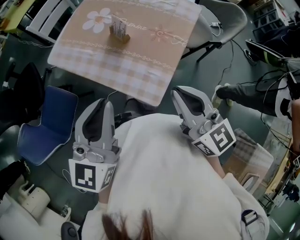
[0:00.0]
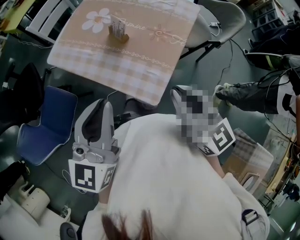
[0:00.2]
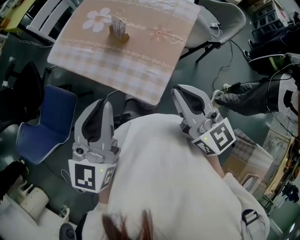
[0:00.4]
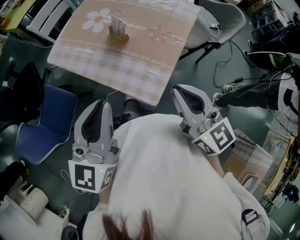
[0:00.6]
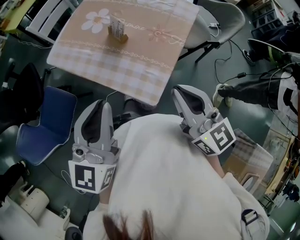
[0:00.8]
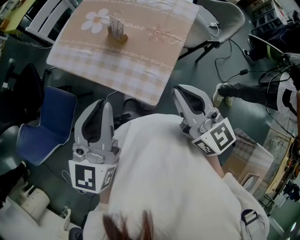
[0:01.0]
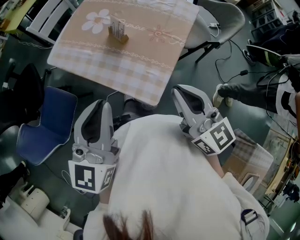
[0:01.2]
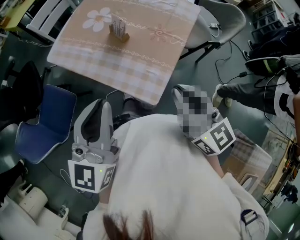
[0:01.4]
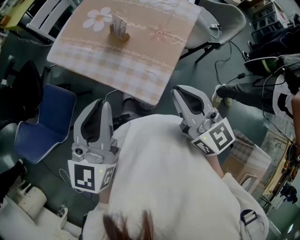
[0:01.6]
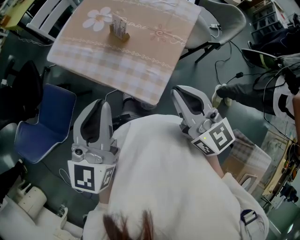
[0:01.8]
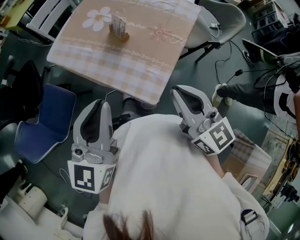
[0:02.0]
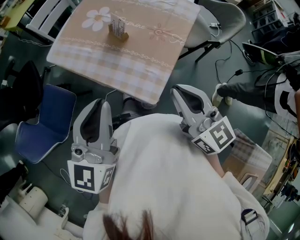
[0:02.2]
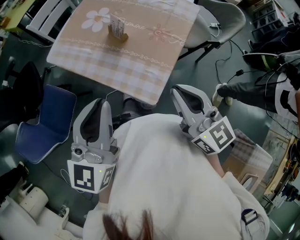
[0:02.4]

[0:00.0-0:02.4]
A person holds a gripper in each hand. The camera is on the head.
0.0 to 2.4 s: Both grippers stay put.

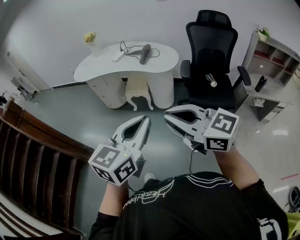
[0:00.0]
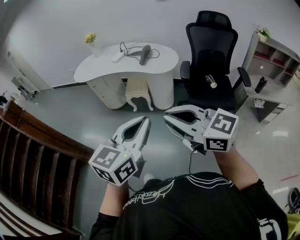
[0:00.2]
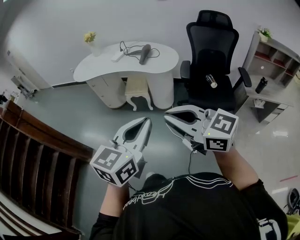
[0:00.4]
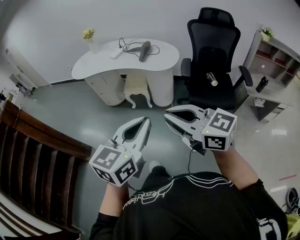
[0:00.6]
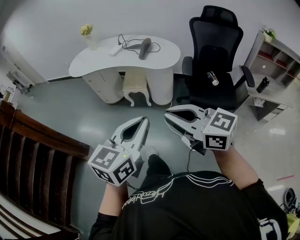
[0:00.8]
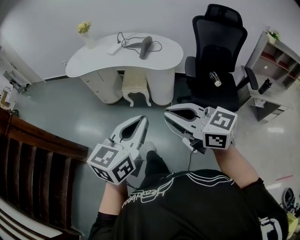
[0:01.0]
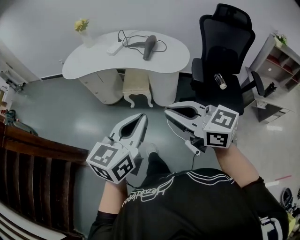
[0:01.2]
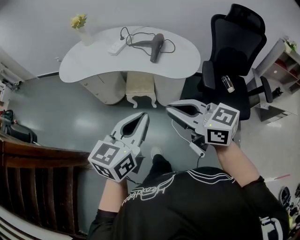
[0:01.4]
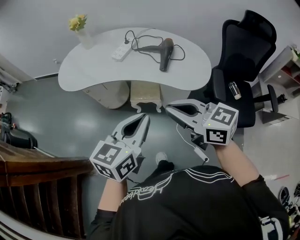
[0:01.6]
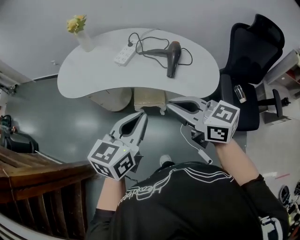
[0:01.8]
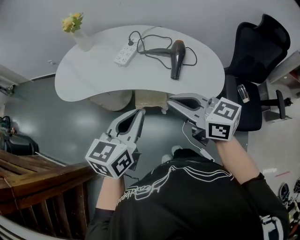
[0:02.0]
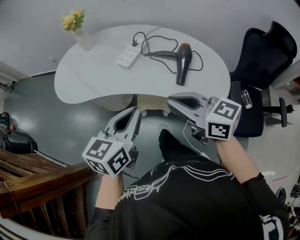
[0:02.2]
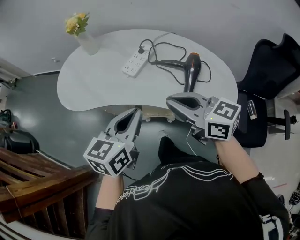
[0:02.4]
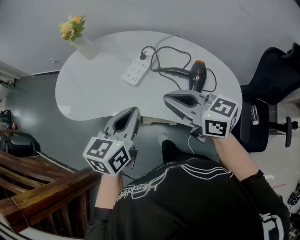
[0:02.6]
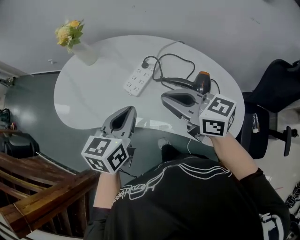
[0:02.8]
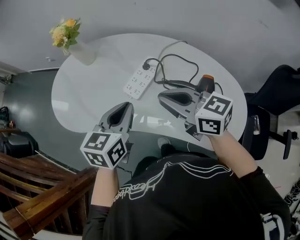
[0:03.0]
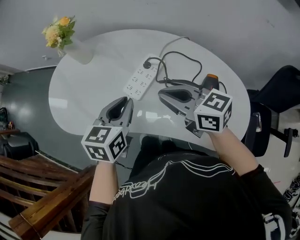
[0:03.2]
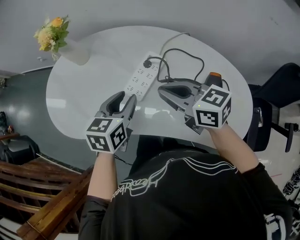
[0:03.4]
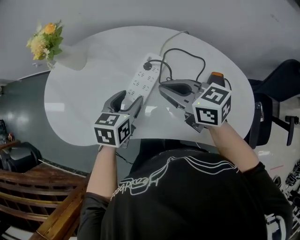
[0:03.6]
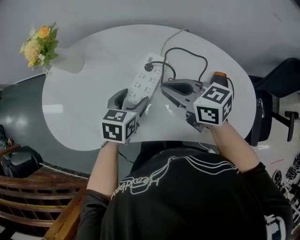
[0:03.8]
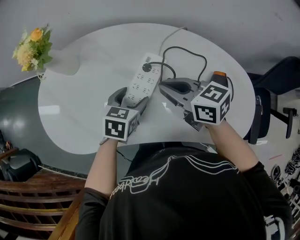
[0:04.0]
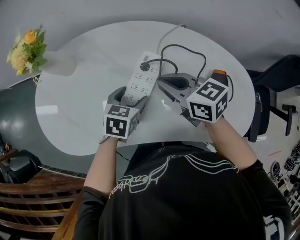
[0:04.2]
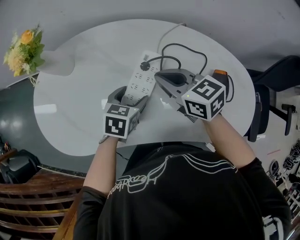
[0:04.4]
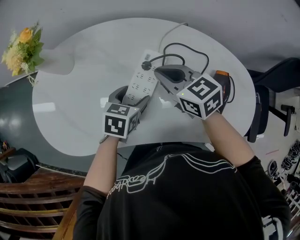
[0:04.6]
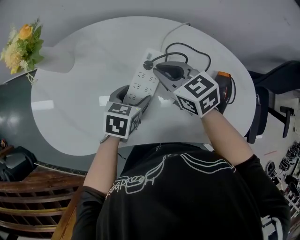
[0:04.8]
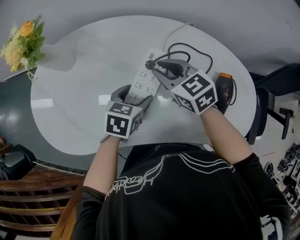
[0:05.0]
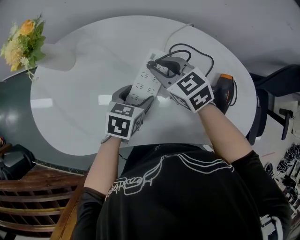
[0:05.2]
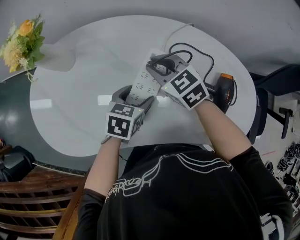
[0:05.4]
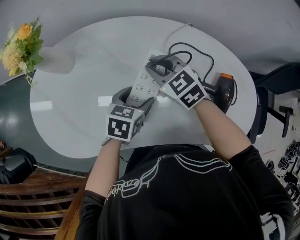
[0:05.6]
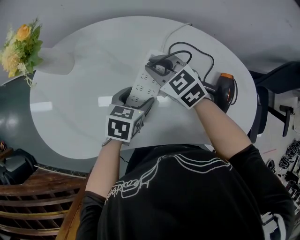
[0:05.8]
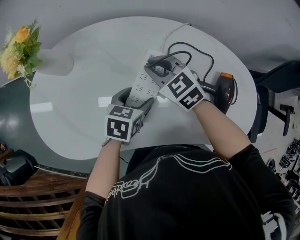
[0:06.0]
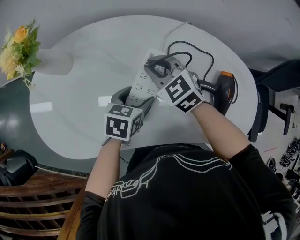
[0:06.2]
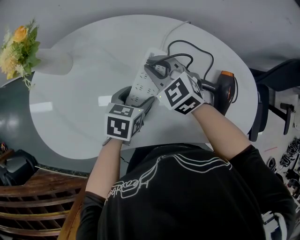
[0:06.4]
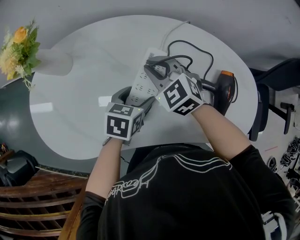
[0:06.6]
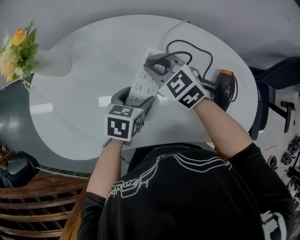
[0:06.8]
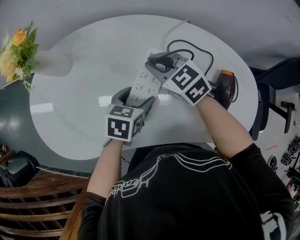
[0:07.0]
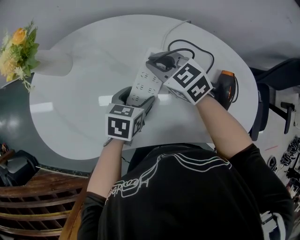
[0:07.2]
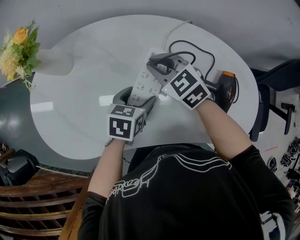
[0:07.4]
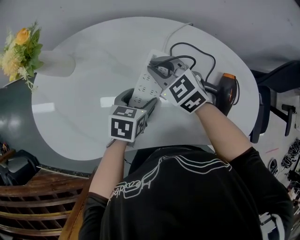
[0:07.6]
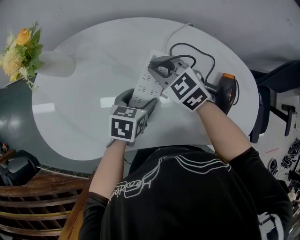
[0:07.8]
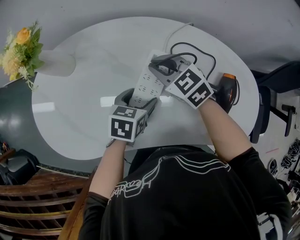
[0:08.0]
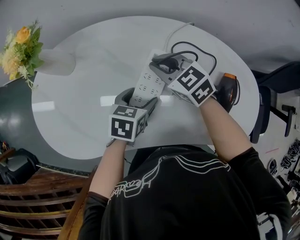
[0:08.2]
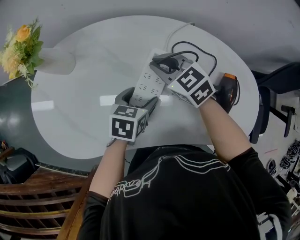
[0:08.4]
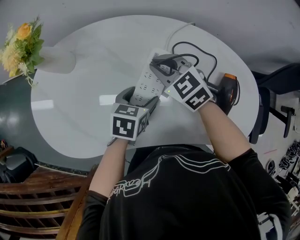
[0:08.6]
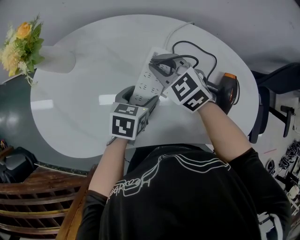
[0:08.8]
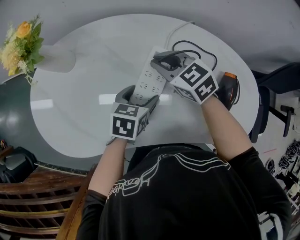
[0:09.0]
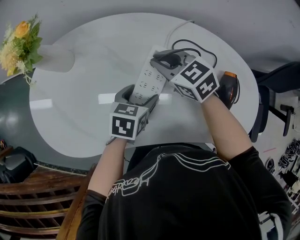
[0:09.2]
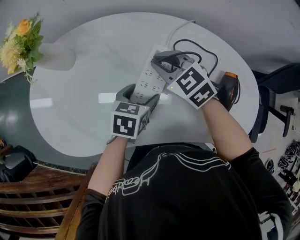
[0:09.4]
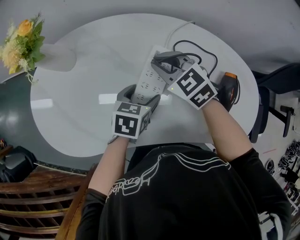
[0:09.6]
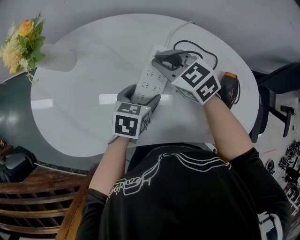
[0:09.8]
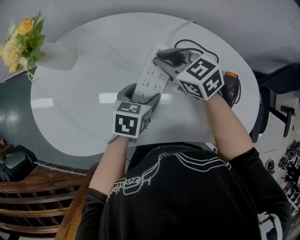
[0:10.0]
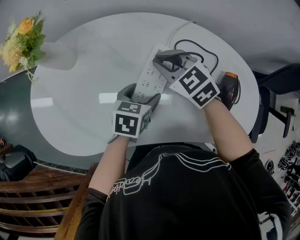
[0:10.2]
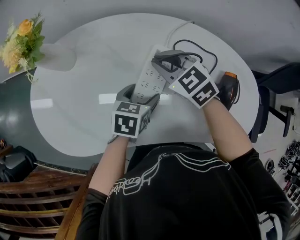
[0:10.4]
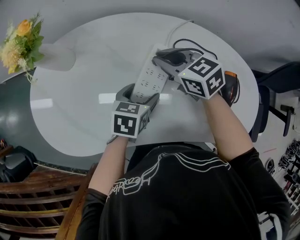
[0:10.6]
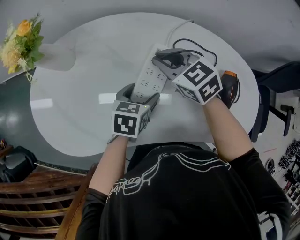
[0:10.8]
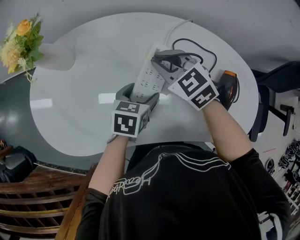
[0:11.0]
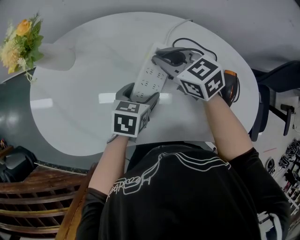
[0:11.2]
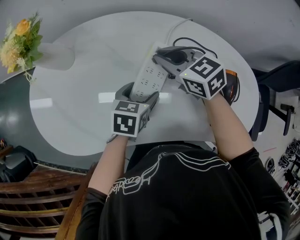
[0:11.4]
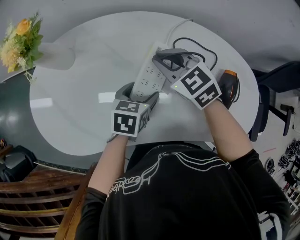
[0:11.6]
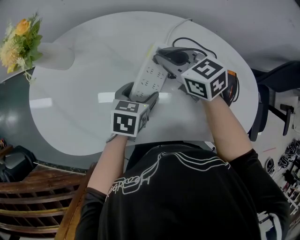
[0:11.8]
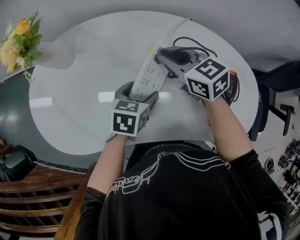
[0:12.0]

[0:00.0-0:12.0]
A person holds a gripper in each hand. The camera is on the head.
0.0 to 1.6 s: The pair of grippers is taken forward, approximately 40 cm.
1.6 to 3.0 s: Both grippers are carried forward, approximately 40 cm.
3.0 to 4.4 s: The right gripper heads forward and downward, covering some 20 cm, and swivels roughly 20 degrees, while the left gripper is displaced downward and forward by roughly 20 cm, rotates approximately 30 degrees, and opens up.
4.4 to 6.0 s: The right gripper heads forward and downward, covering about 10 cm, and swivels roughly 30 degrees.
6.0 to 10.4 s: The grippers stay close to where they were, moving slightly.

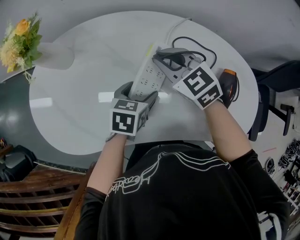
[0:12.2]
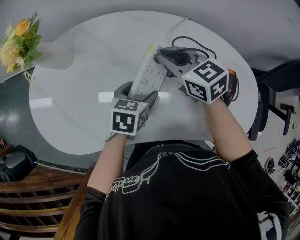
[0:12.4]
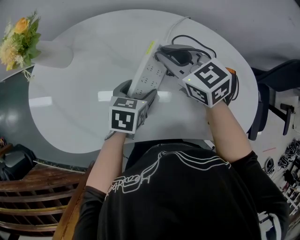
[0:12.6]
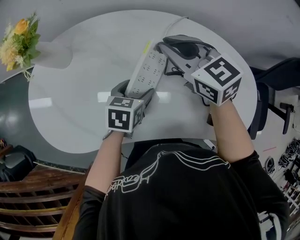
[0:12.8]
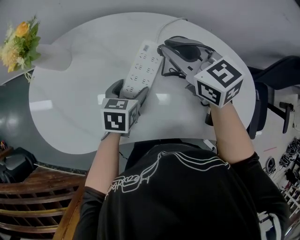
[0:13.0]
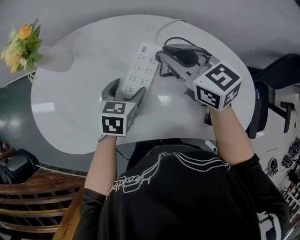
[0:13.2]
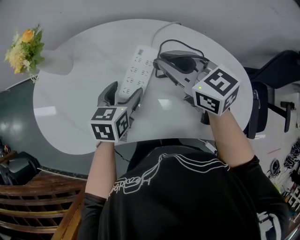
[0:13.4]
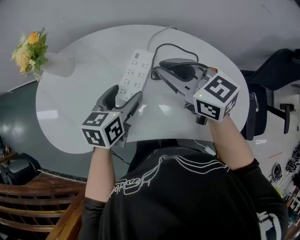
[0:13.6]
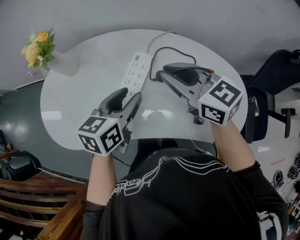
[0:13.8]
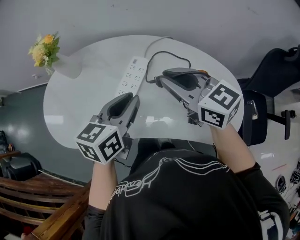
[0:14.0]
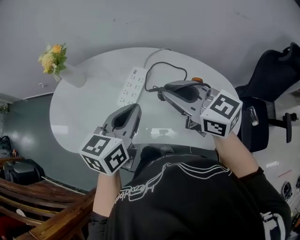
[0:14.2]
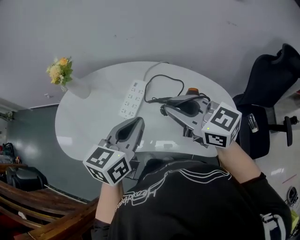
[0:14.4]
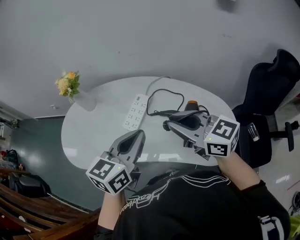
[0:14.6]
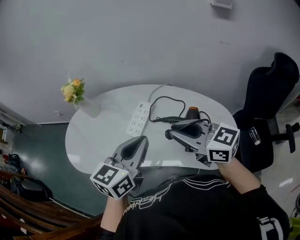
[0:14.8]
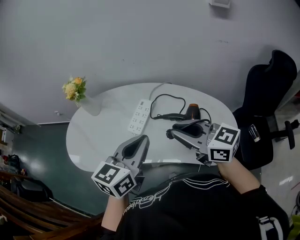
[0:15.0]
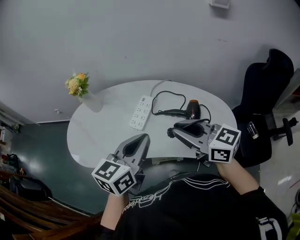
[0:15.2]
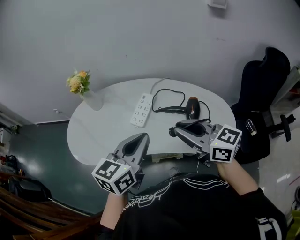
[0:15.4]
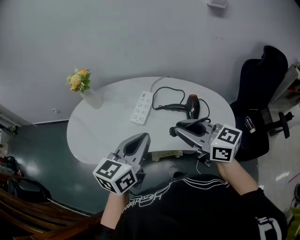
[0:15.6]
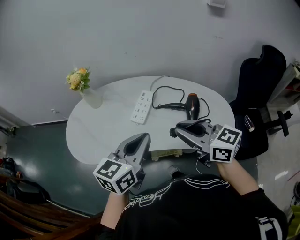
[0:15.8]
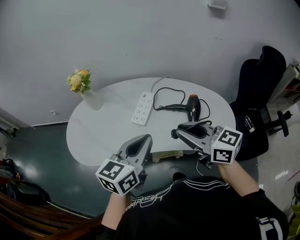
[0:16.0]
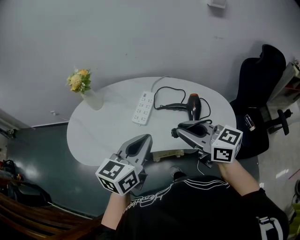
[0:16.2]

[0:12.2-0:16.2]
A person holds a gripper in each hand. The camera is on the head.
12.2 to 13.6 s: The left gripper is displaced upward by roughly 10 cm. Meanwhile the right gripper goes roughly 15 cm upward, backward and to the right, and rotates about 20 degrees.
13.6 to 14.8 s: The left gripper shifts some 25 cm upward, backward and to the right, changes its angle by some 20 degrees, and closes. The right gripper is displaced backward and upward by about 20 cm.
14.8 to 16.2 s: The grippers both shift backward and to the left by approximately 10 cm.

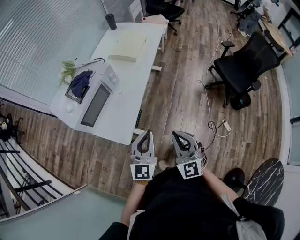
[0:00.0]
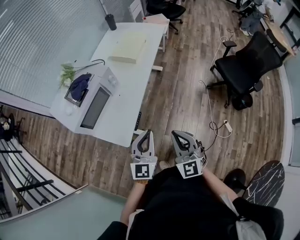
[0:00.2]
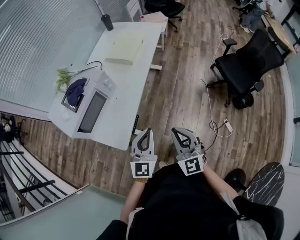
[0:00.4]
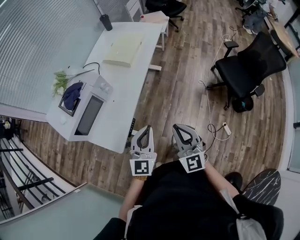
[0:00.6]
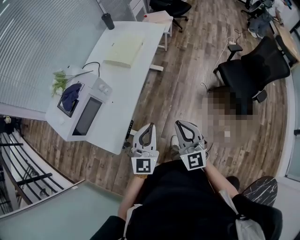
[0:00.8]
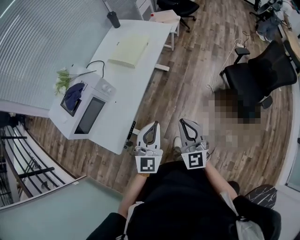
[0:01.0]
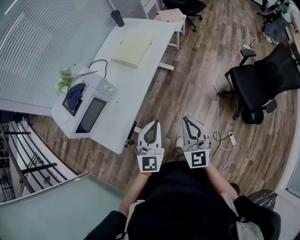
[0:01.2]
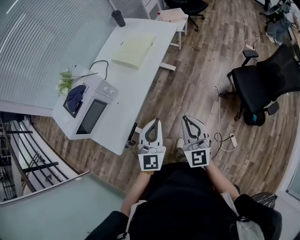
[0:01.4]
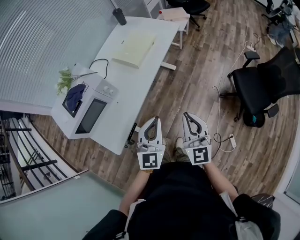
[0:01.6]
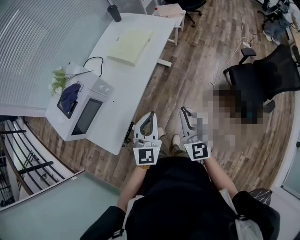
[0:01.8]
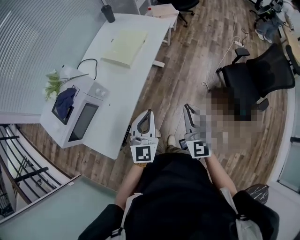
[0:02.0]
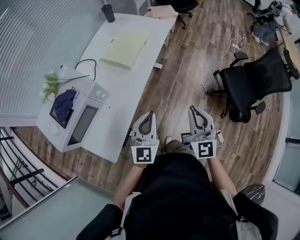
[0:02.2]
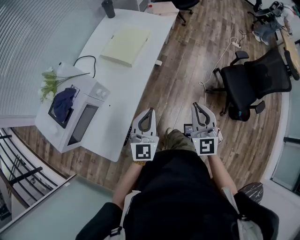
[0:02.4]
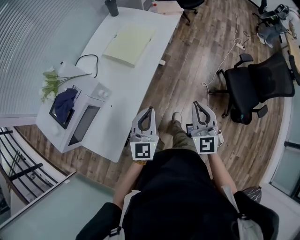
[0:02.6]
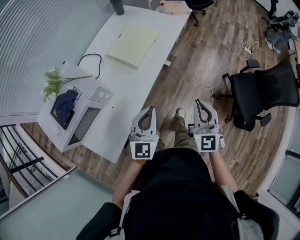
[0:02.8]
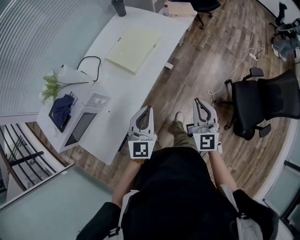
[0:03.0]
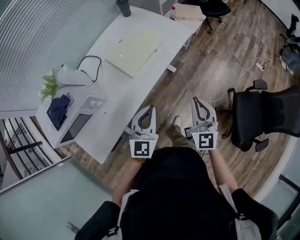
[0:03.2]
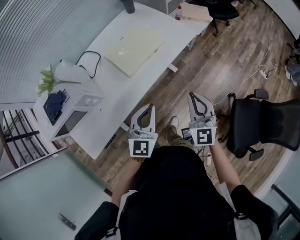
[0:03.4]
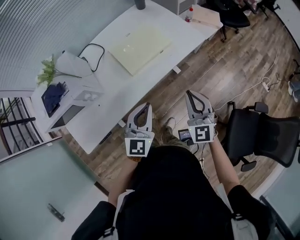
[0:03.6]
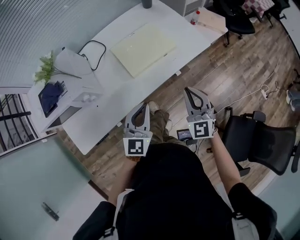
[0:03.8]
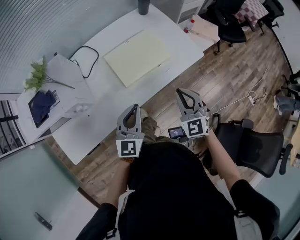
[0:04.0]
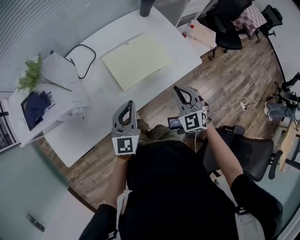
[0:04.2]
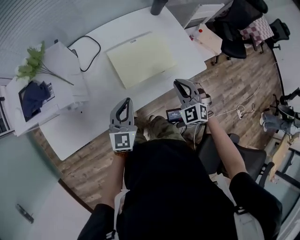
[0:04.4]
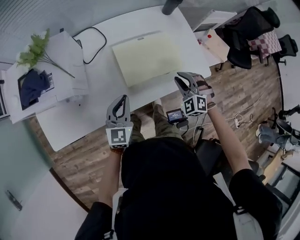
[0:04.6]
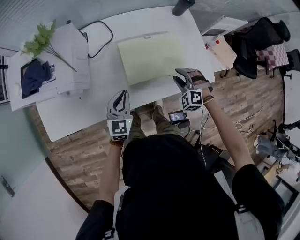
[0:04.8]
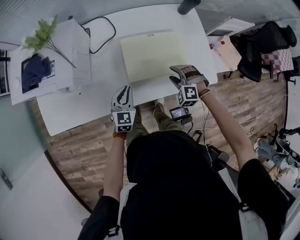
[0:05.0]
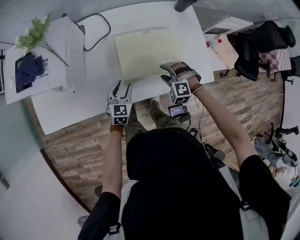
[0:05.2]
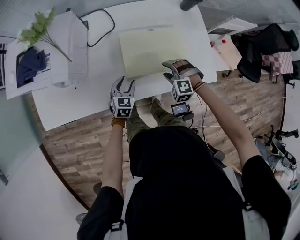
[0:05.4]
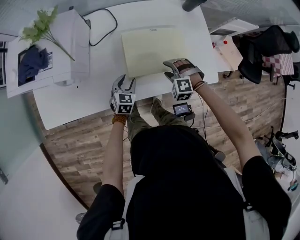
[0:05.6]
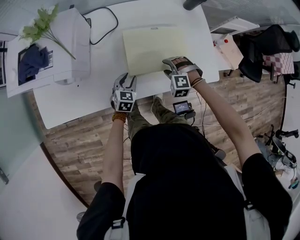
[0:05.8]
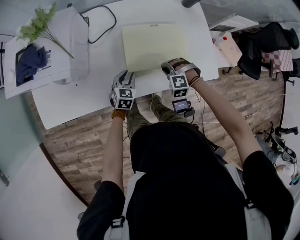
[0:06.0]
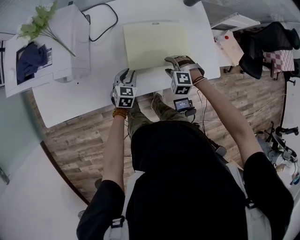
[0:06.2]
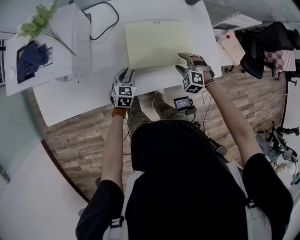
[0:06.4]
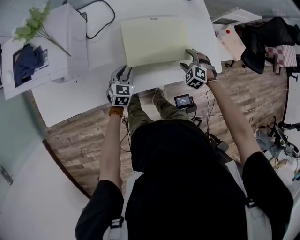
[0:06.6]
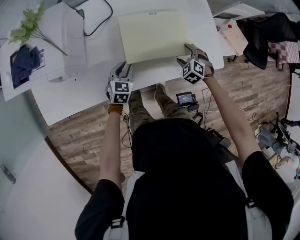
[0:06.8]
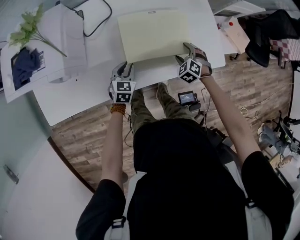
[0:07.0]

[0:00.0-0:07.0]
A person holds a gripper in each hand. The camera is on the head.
0.0 to 1.4 s: The two grippers go about 25 cm forward and to the right.
1.4 to 2.8 s: The left gripper moves forward and to the left, some 15 cm; the right gripper shifts about 15 cm forward.
2.8 to 4.2 s: The left gripper changes place by roughly 25 cm, and changes its angle by some 30 degrees. Meanwhile the right gripper shifts by roughly 35 cm, and swivels roughly 50 degrees.
4.2 to 5.6 s: The left gripper shifts roughly 25 cm downward, angles its fingers downward, by roughly 30 degrees, and opens. Meanwhile the right gripper moves downward and forward, some 20 cm, tips its fingers downward by approximately 30 degrees, and opens up.
5.6 to 7.0 s: The left gripper closes its fingers; the right gripper is displaced to the right by roughly 10 cm, rotates some 40 degrees, and closes, then opens again.
